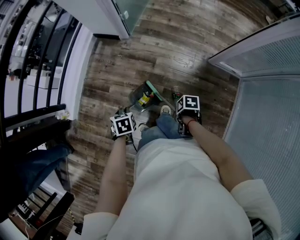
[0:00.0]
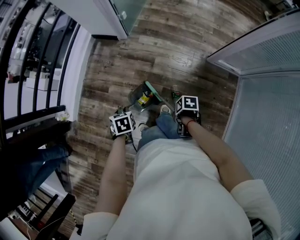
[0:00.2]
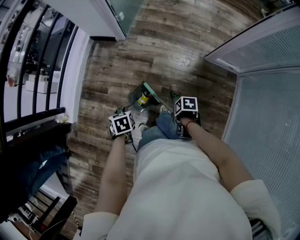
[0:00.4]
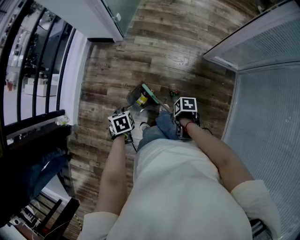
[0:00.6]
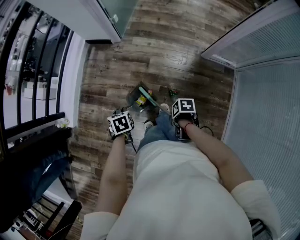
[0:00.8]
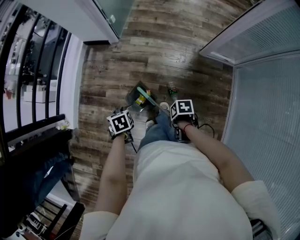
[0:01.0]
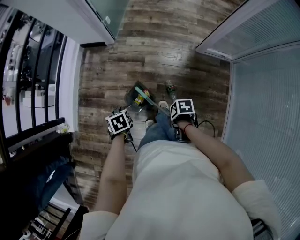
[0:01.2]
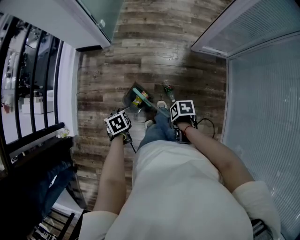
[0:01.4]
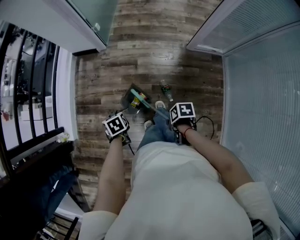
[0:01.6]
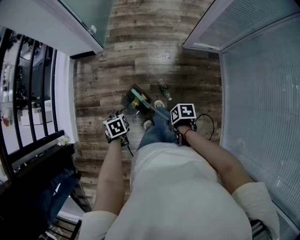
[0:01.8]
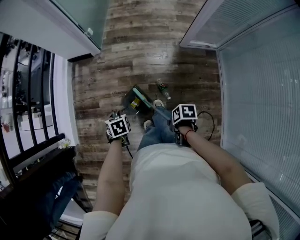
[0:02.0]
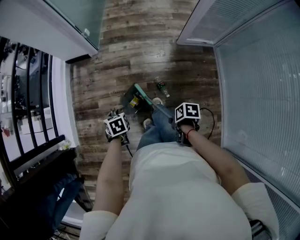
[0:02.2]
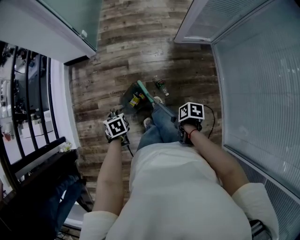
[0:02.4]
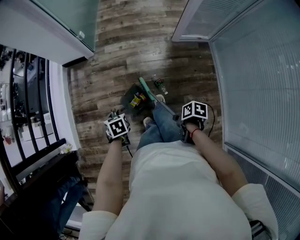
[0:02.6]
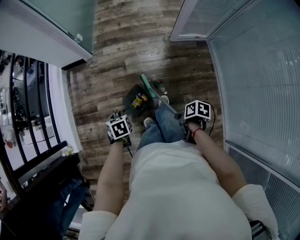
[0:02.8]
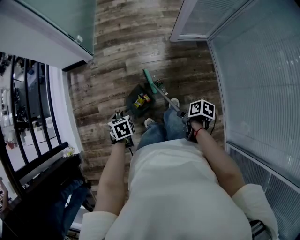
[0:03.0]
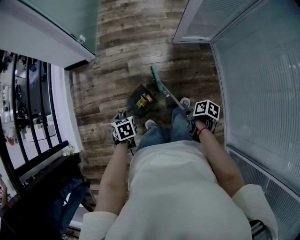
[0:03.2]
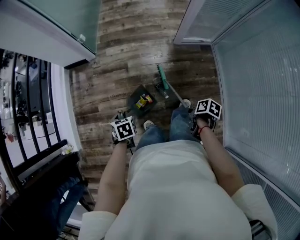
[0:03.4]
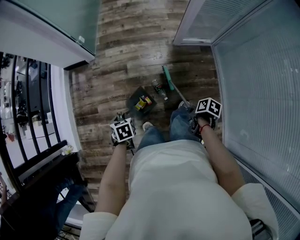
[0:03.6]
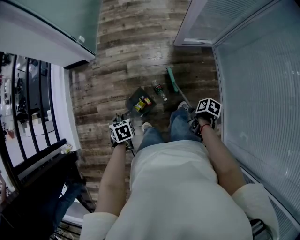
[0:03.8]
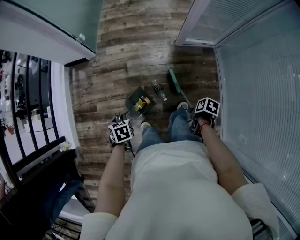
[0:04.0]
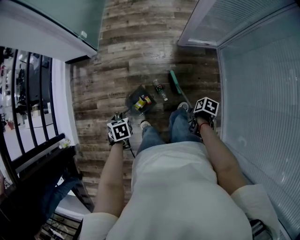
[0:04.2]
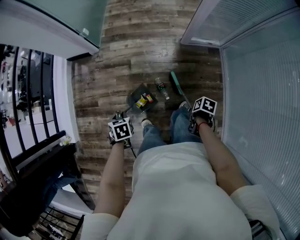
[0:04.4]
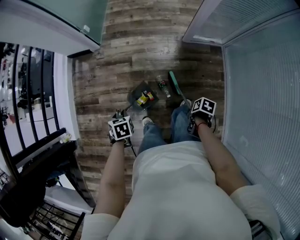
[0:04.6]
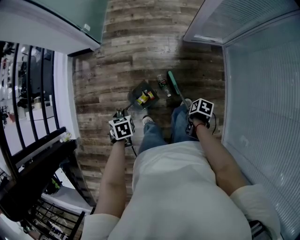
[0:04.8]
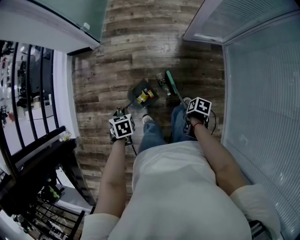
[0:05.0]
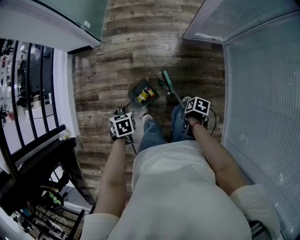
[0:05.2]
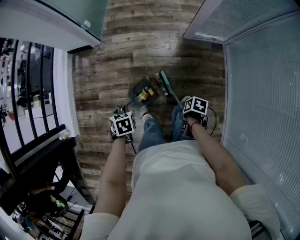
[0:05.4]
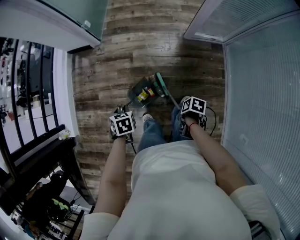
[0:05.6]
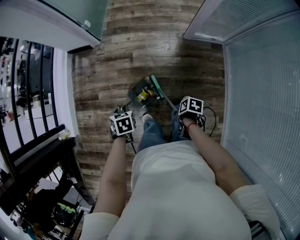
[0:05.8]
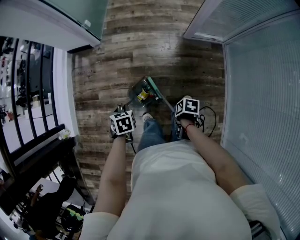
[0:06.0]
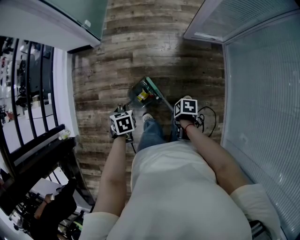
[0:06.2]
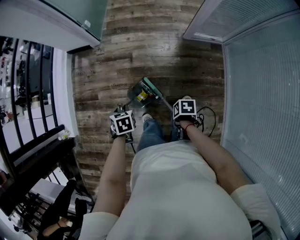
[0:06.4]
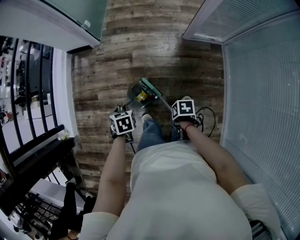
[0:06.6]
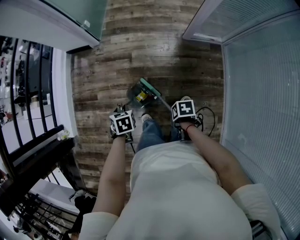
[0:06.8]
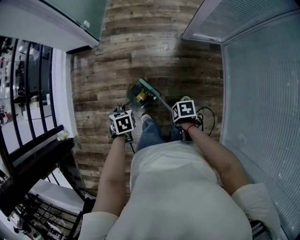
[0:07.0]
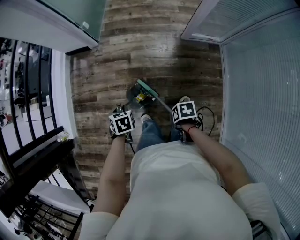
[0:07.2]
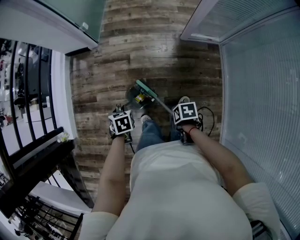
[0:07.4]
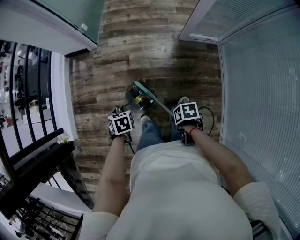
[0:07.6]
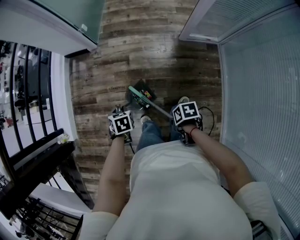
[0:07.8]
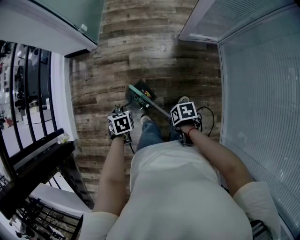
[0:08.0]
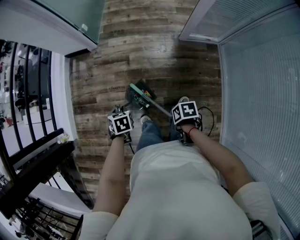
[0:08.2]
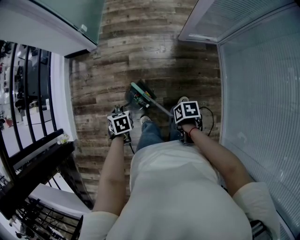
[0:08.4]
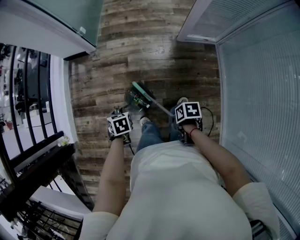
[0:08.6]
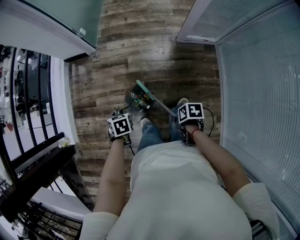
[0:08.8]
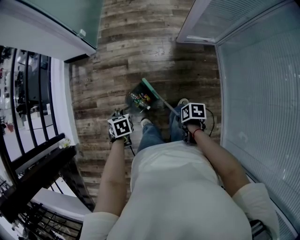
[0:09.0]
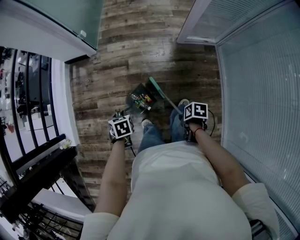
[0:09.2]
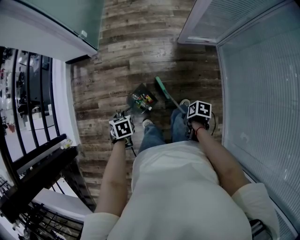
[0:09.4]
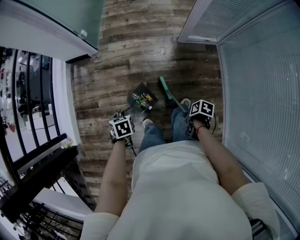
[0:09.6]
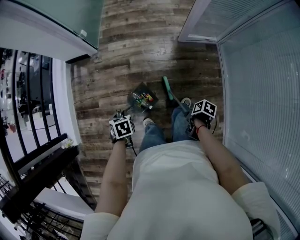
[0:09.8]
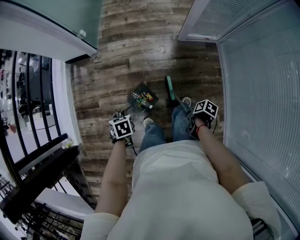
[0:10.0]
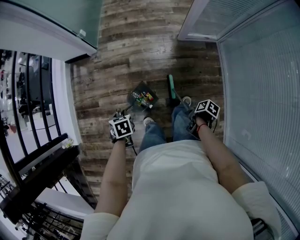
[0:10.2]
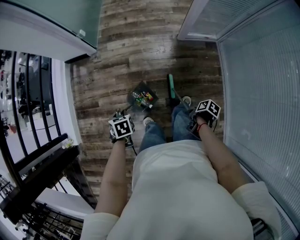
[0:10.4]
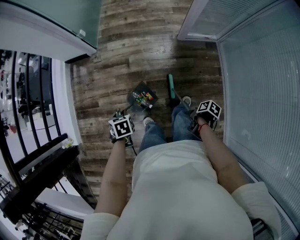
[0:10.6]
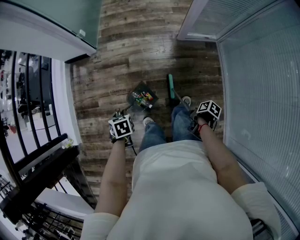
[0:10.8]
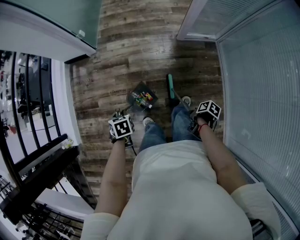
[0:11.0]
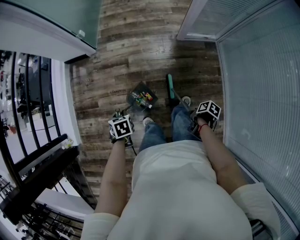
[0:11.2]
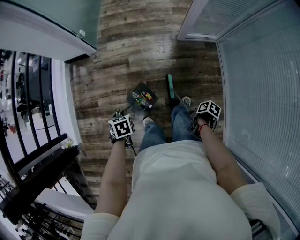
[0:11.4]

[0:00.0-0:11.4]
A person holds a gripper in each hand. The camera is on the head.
0:01.4 to 0:02.8: The left gripper moves about 5 cm, and swivels about 20 degrees.
0:02.8 to 0:04.2: The left gripper shifts by some 10 cm.

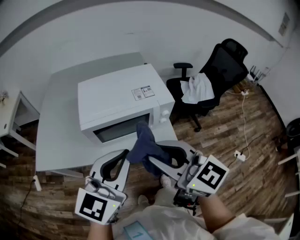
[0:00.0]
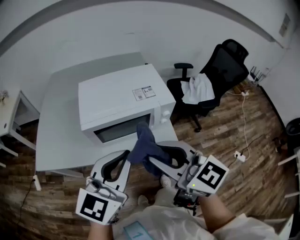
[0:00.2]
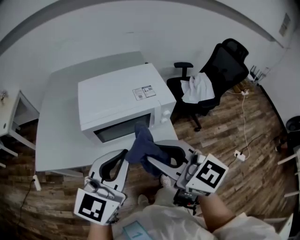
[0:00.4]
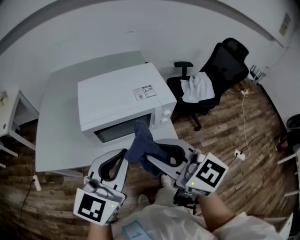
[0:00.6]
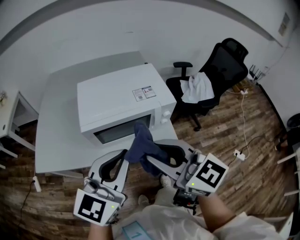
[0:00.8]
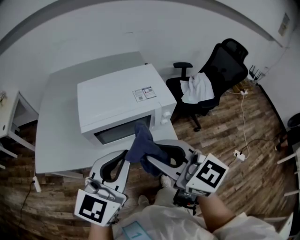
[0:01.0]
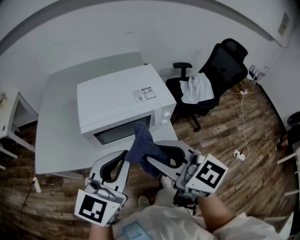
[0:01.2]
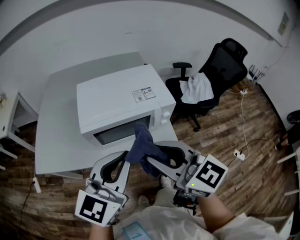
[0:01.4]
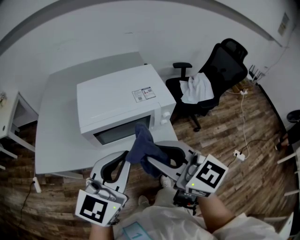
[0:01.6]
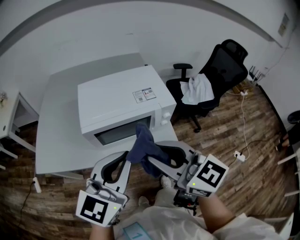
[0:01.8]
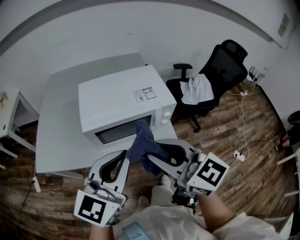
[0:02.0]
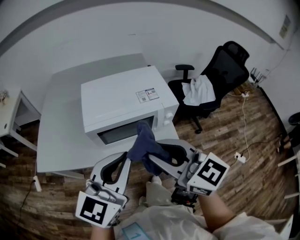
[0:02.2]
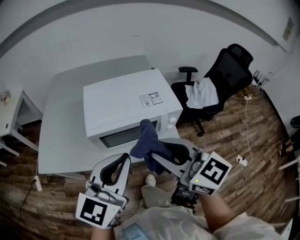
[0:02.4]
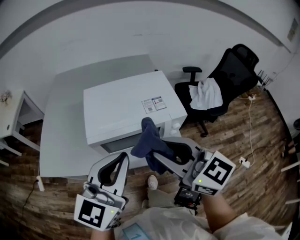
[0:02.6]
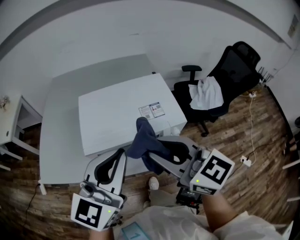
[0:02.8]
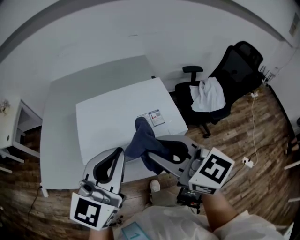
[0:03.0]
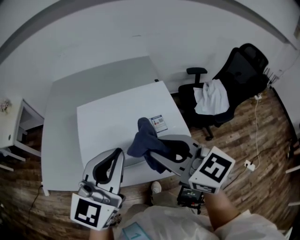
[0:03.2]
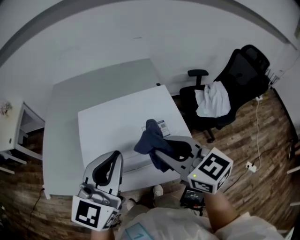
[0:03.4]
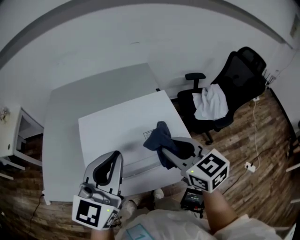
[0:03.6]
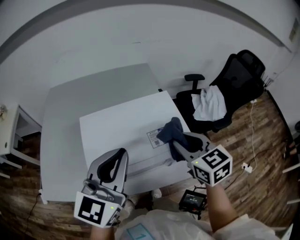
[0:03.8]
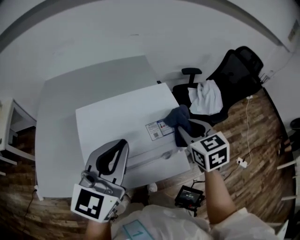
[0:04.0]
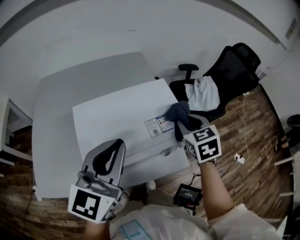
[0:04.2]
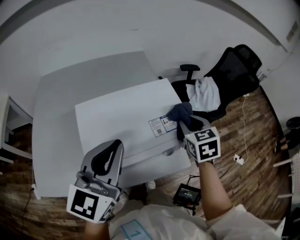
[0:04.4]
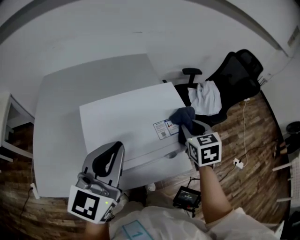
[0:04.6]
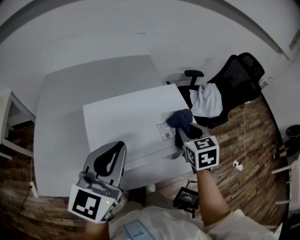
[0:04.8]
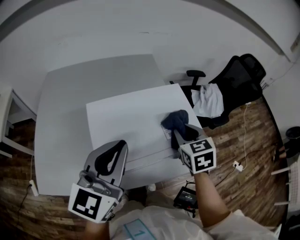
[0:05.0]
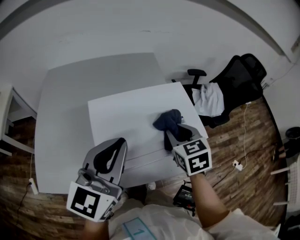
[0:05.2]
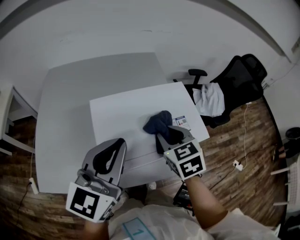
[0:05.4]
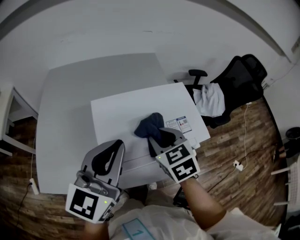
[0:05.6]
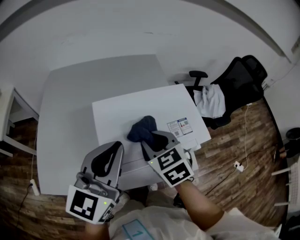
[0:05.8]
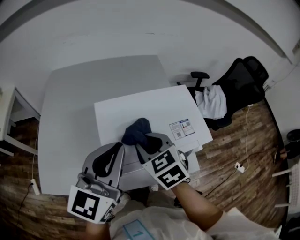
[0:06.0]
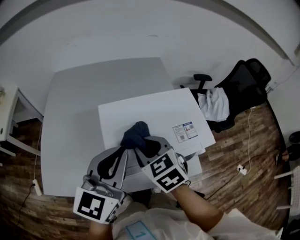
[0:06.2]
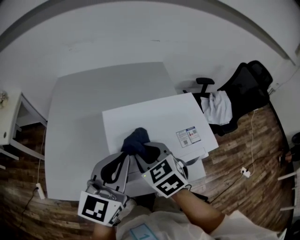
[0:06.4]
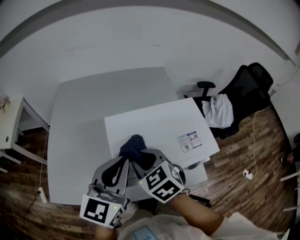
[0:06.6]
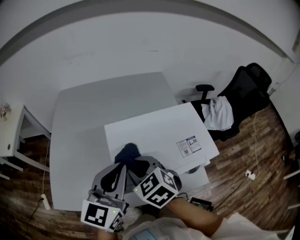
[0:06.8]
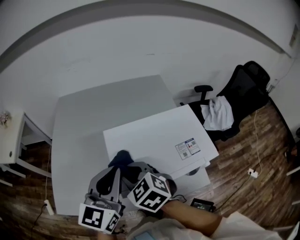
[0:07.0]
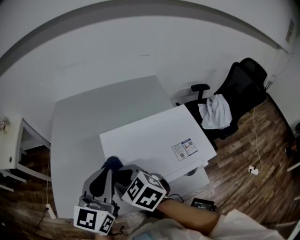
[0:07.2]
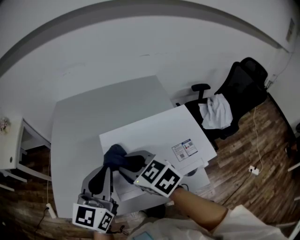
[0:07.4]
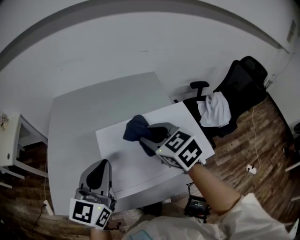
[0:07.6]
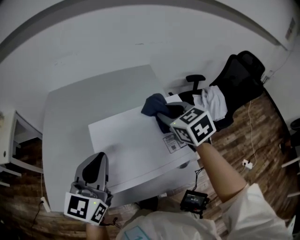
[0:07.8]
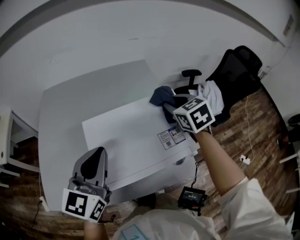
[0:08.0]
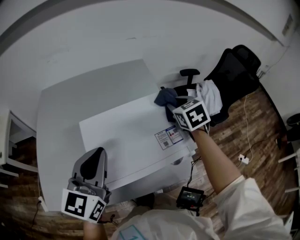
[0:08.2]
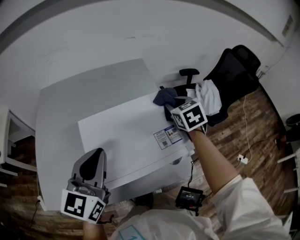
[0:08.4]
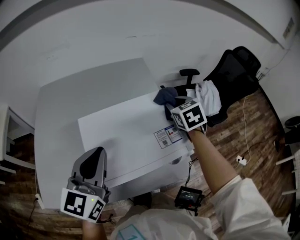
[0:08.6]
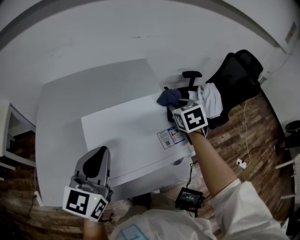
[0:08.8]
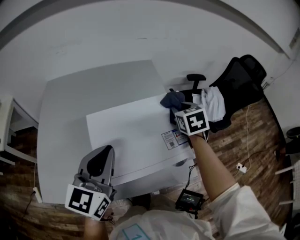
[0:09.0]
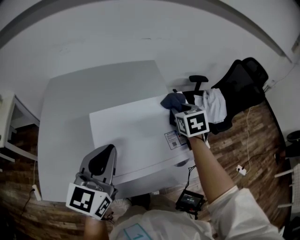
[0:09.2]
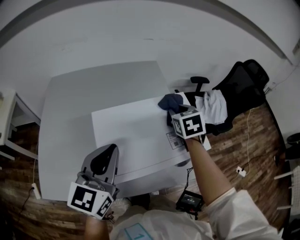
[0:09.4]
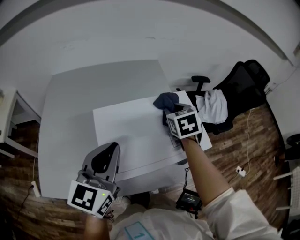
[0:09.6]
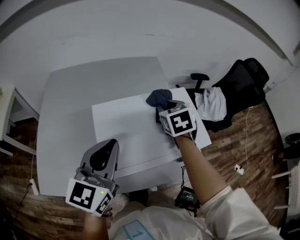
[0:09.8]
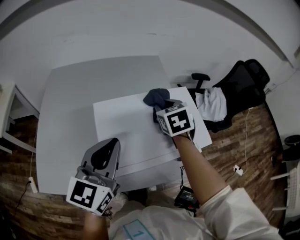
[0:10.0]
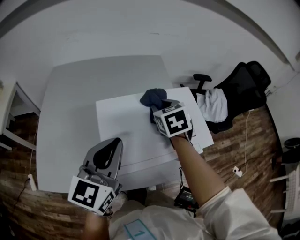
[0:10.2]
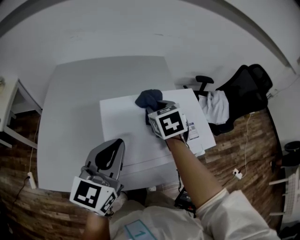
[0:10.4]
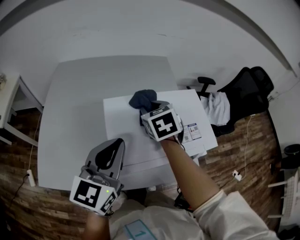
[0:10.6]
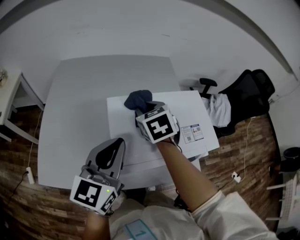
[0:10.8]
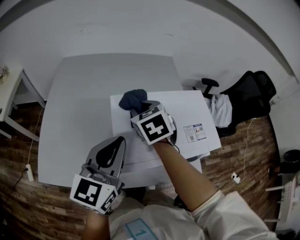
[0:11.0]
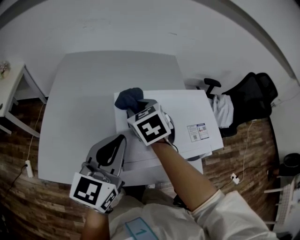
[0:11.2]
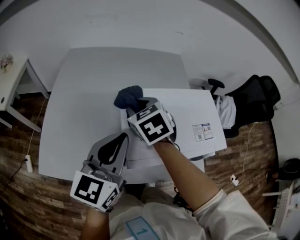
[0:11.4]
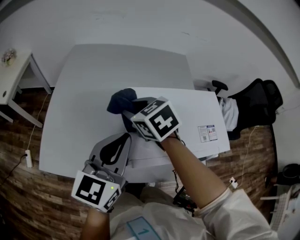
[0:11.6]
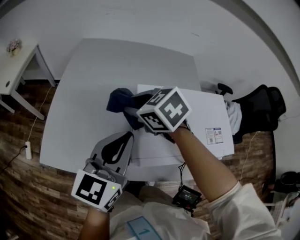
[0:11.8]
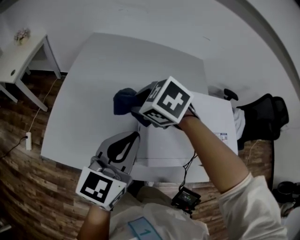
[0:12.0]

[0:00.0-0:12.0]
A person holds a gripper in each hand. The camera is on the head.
0:00.0 to 0:01.6: The grippers make only small movements.
0:01.6 to 0:03.0: Both grippers move forward, some 15 cm.
0:03.0 to 0:04.4: The right gripper ends up approximately 25 cm from where it was, and turns by roughly 50 degrees; the left gripper ends up some 10 cm from where it was.
0:04.4 to 0:06.0: The right gripper goes approximately 25 cm to the left, and rotates about 30 degrees, while the left gripper moves to the left, roughly 5 cm.
0:06.0 to 0:07.6: The right gripper shifts roughly 10 cm forward and upward, and moves approximately 10 cm to the left and comes back, while the left gripper shifts by some 5 cm.
0:07.6 to 0:09.0: The right gripper shifts about 20 cm to the right and forward, and turns by some 30 degrees.
0:09.0 to 0:10.4: The right gripper travels to the left by some 15 cm.
0:10.4 to 0:12.0: The left gripper changes place by approximately 10 cm, while the right gripper moves approximately 25 cm, and swivels some 60 degrees.

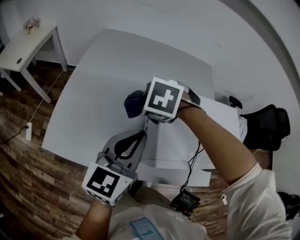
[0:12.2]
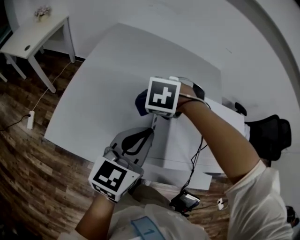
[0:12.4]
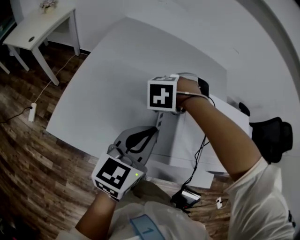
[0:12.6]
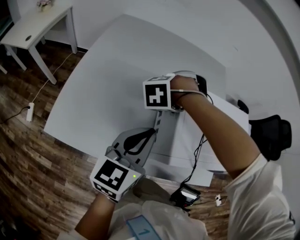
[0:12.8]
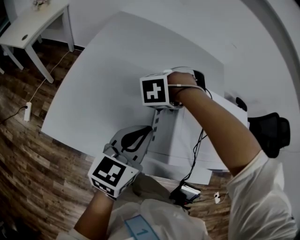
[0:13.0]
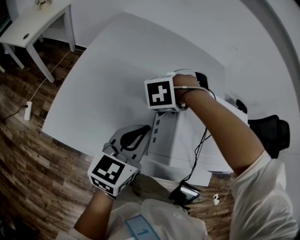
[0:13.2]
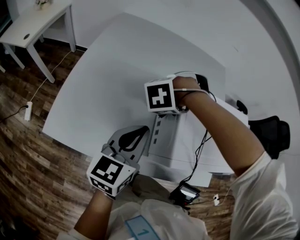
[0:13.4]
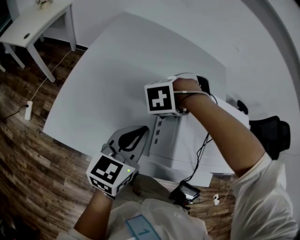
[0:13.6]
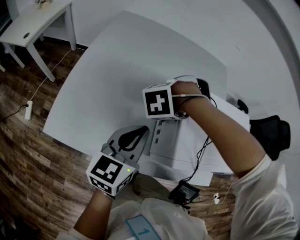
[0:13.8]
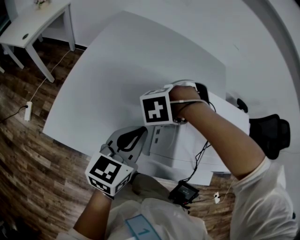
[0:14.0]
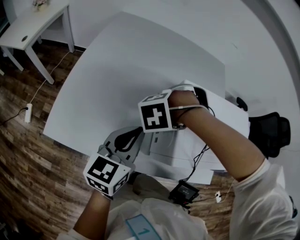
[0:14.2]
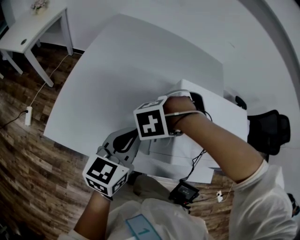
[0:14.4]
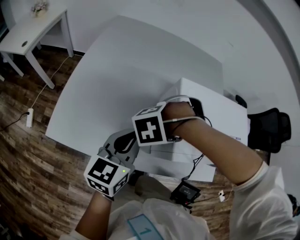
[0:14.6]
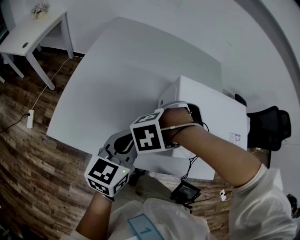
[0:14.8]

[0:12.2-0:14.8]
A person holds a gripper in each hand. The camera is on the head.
0:12.2 to 0:13.4: The two grippers go about 5 cm downward. The right gripper turns by roughly 40 degrees.
0:13.4 to 0:14.8: The right gripper is displaced to the right and backward by approximately 15 cm.
